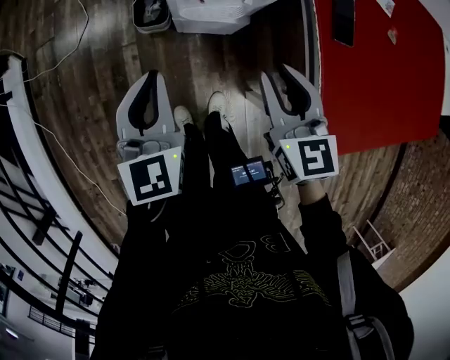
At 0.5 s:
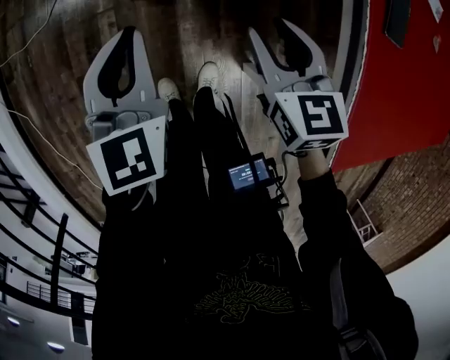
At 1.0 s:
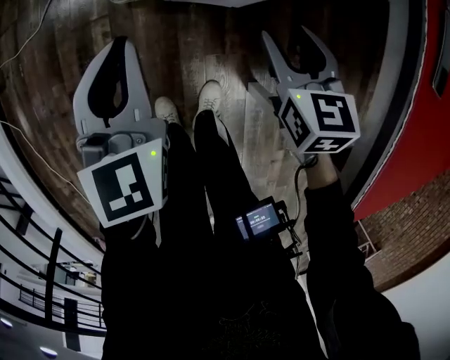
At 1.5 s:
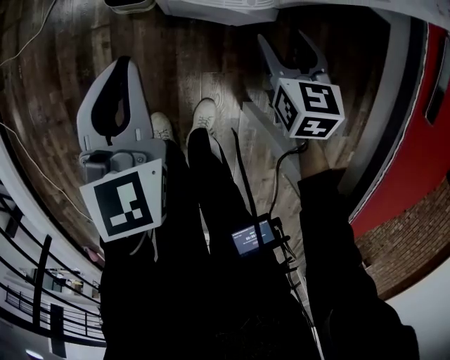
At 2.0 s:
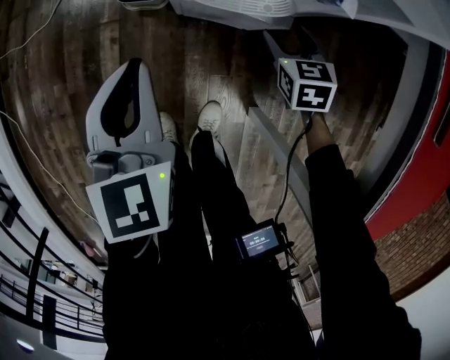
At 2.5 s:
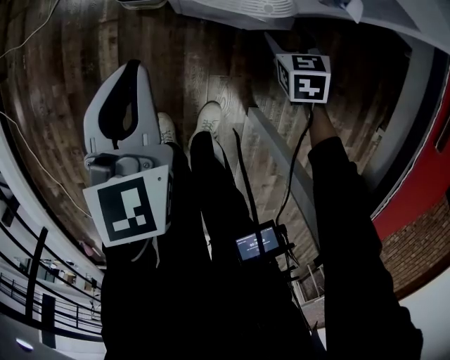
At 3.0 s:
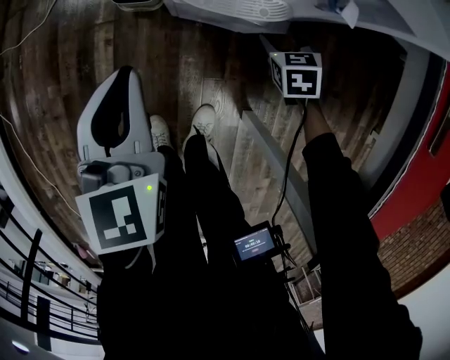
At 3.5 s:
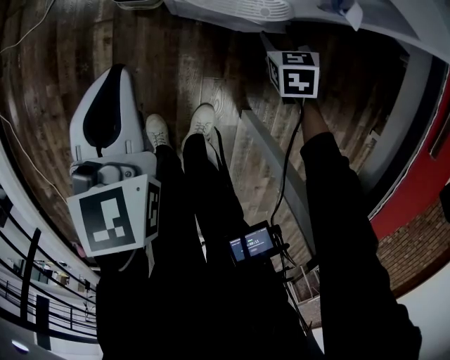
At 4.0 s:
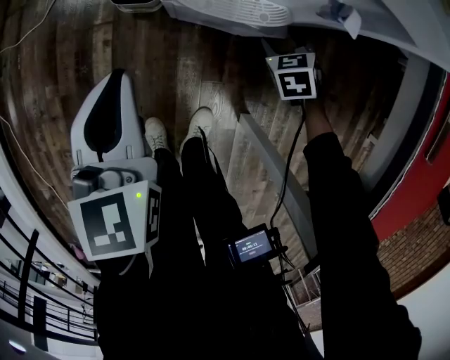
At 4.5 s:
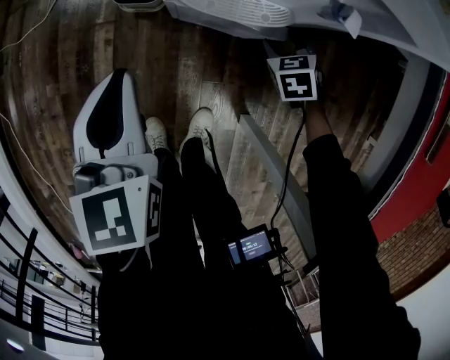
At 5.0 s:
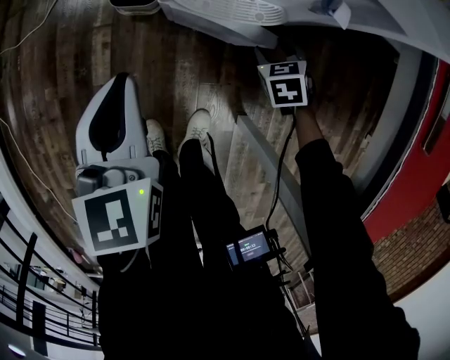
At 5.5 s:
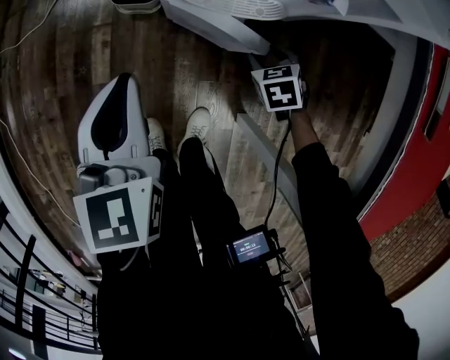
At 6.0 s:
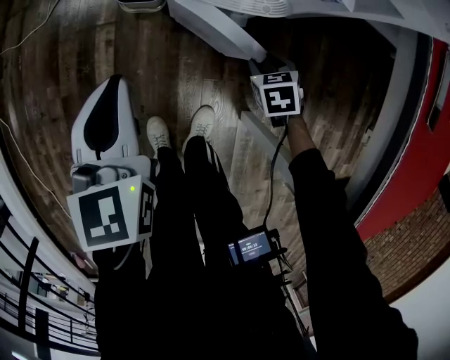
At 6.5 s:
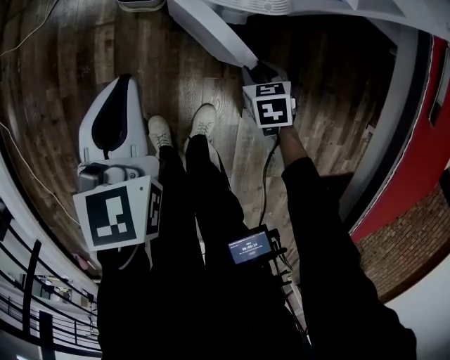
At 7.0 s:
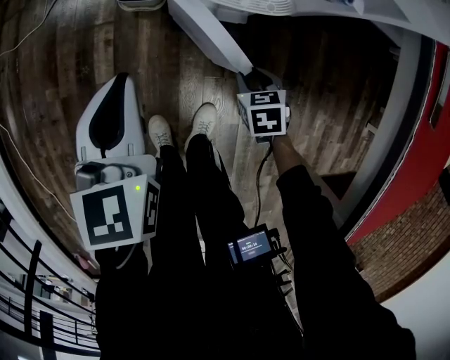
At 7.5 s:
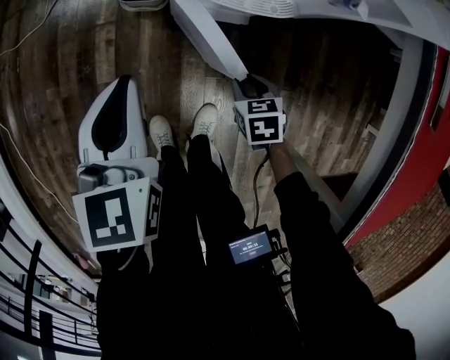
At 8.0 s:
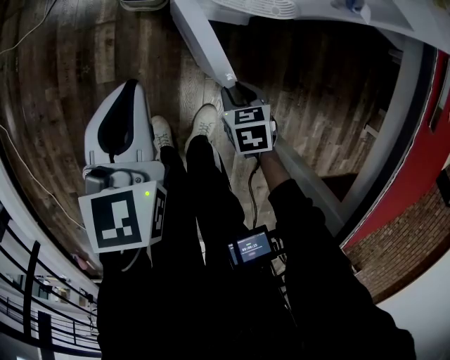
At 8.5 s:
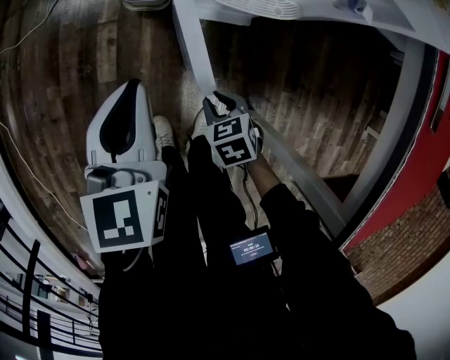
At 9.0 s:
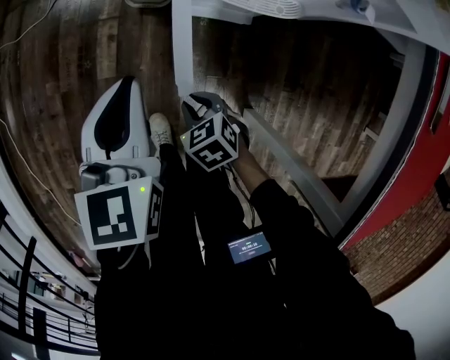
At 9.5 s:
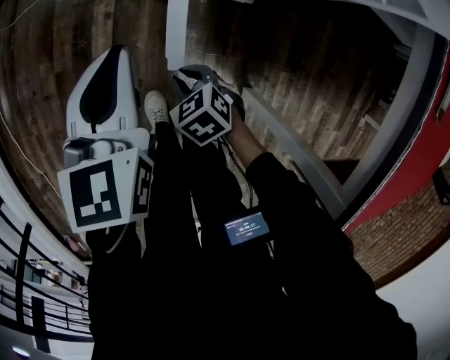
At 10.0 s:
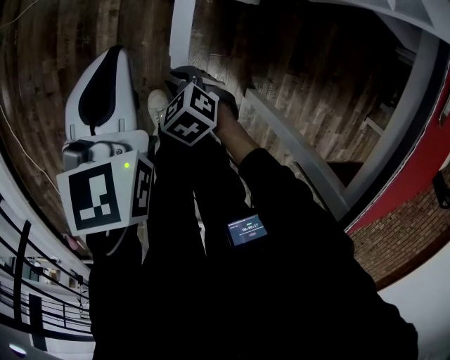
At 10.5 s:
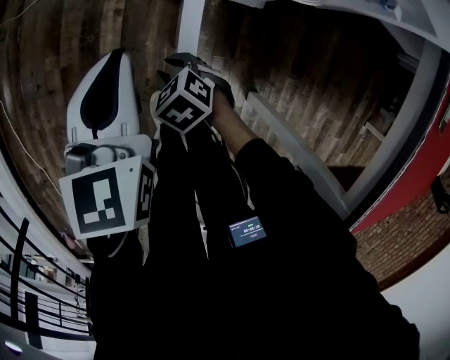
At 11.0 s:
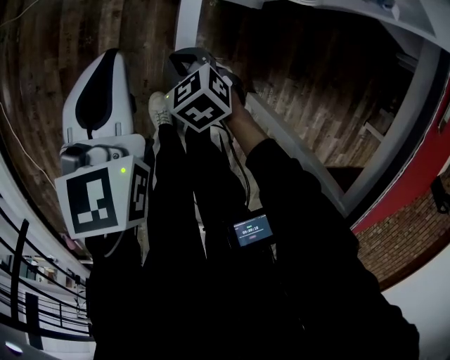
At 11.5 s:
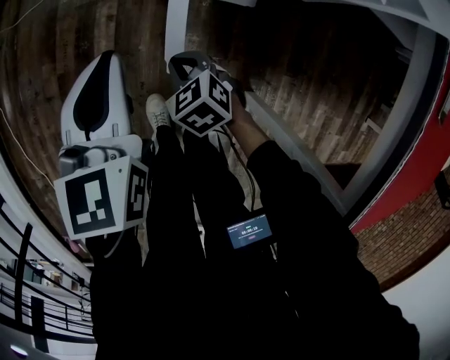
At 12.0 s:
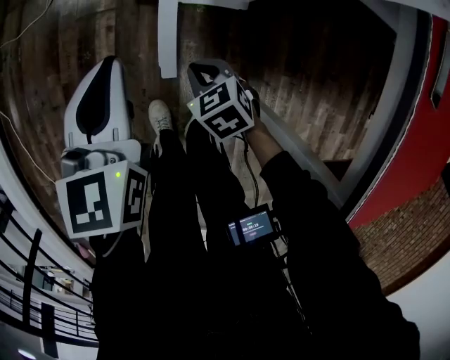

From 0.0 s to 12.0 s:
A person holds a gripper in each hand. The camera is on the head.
From 0.0 s to 2.0 s: The left gripper goes approximately 20 cm downward. Meanwhile the right gripper goes some 35 cm downward, rotates about 20 degrees, and opens.
From 2.0 s to 4.0 s: The right gripper goes approximately 5 cm downward, and swivels about 20 degrees.
From 4.0 s to 6.0 s: The right gripper is displaced backward by about 10 cm, and closes.
From 6.0 s to 8.0 s: The right gripper travels to the left and backward by roughly 10 cm.
From 8.0 s to 10.0 s: The right gripper shifts by roughly 20 cm, and swivels some 40 degrees.
From 10.0 s to 12.0 s: The right gripper heads to the right, covering about 10 cm.

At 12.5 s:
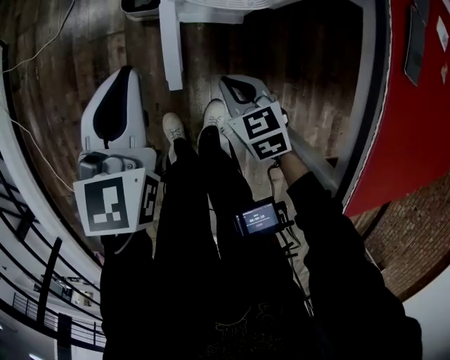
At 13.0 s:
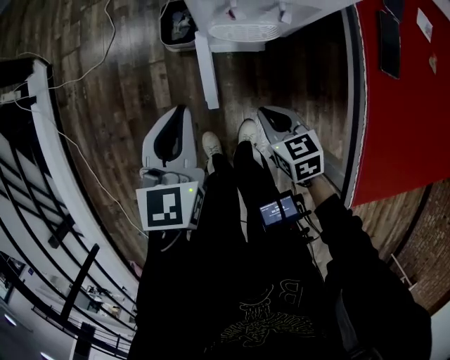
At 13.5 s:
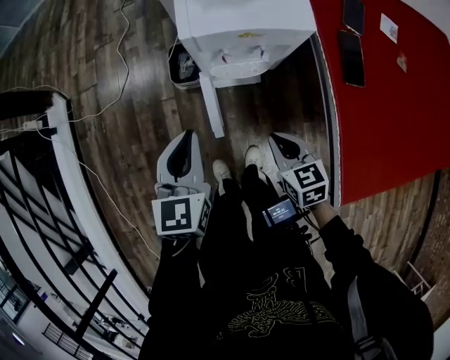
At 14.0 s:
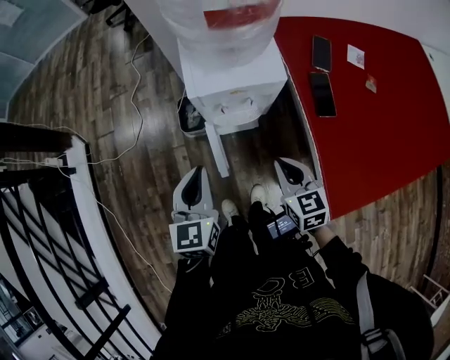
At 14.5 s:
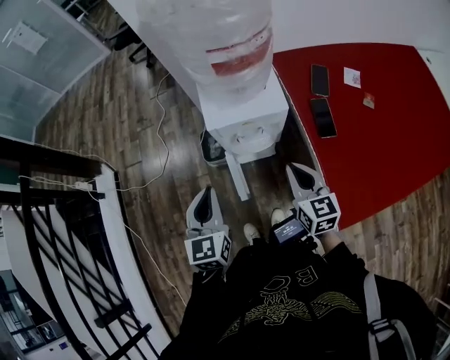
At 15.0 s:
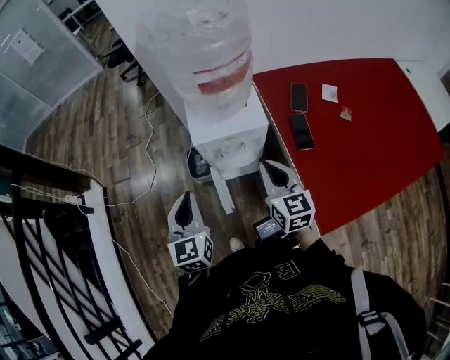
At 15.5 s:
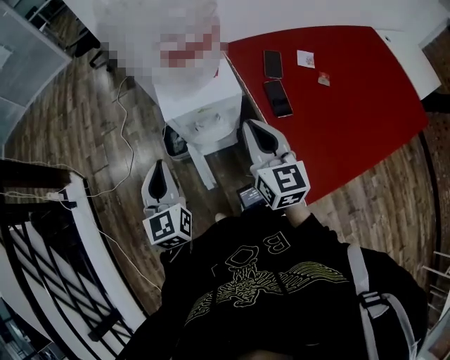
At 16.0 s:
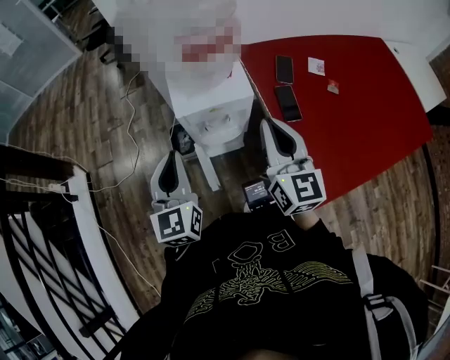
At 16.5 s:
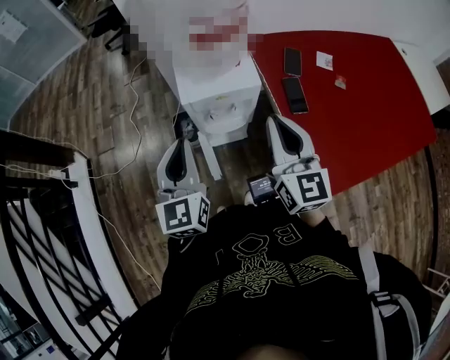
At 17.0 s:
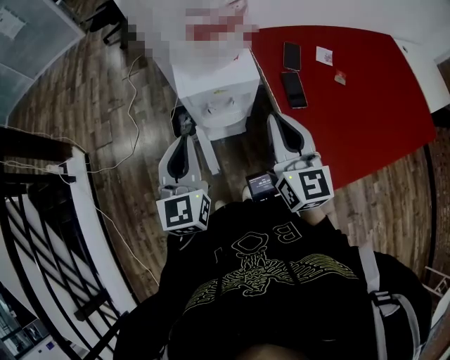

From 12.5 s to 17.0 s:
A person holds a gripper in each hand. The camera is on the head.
From 12.5 s to 14.5 s: Both grippers move upward, approximately 35 cm. The right gripper tips its fingers upward by some 30 degrees.
From 14.5 s to 17.0 s: The right gripper goes roughly 15 cm upward, and changes its angle by roughly 20 degrees, while the left gripper goes some 5 cm upward.

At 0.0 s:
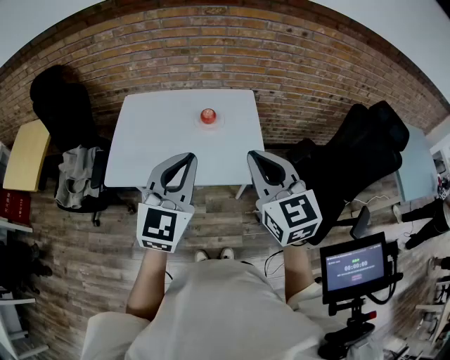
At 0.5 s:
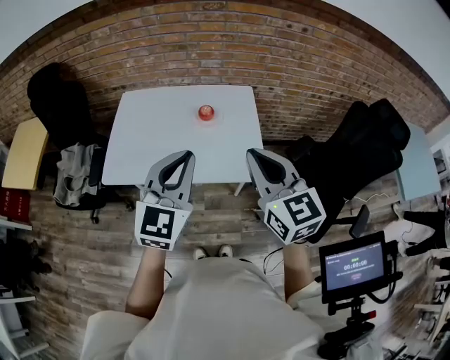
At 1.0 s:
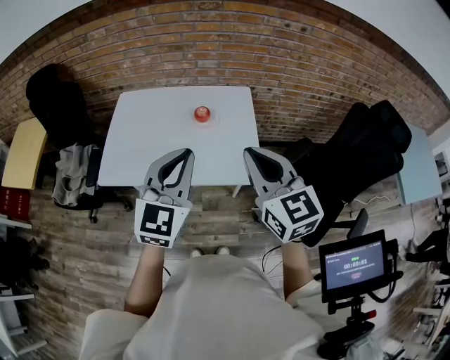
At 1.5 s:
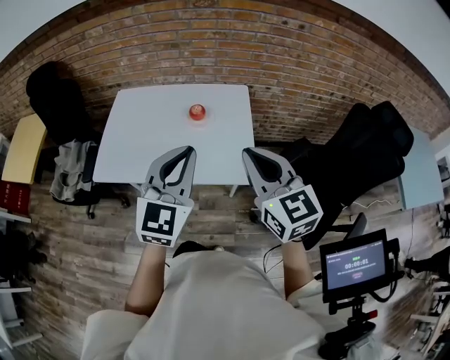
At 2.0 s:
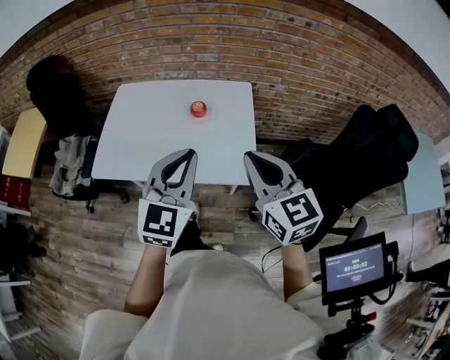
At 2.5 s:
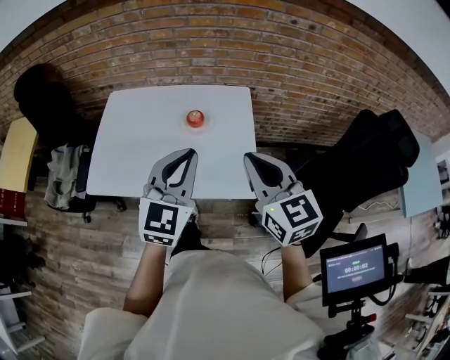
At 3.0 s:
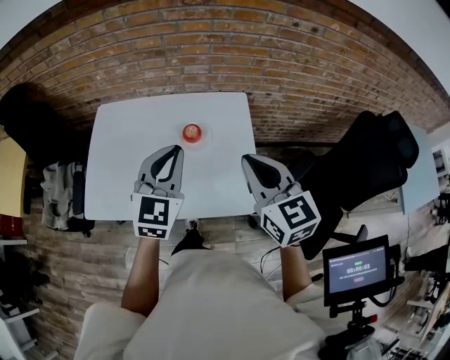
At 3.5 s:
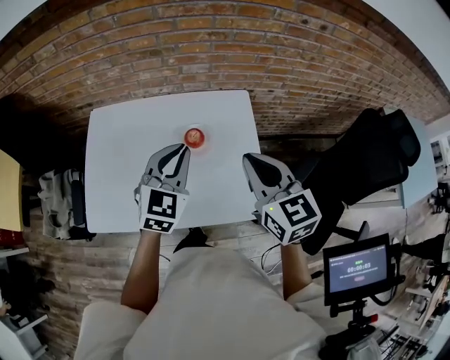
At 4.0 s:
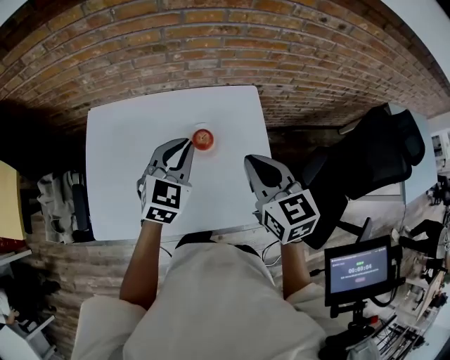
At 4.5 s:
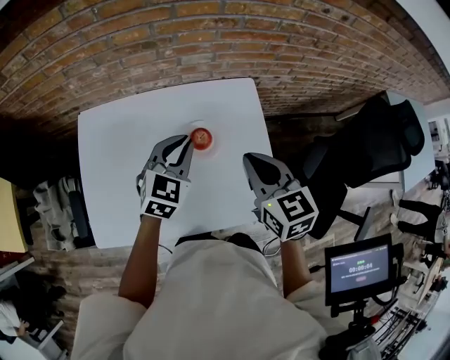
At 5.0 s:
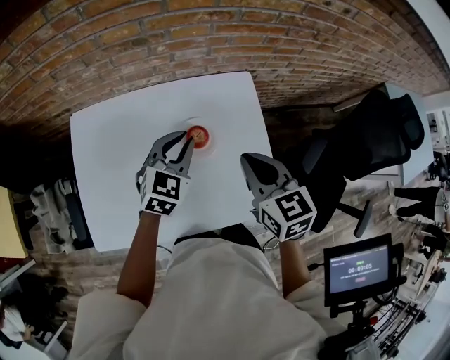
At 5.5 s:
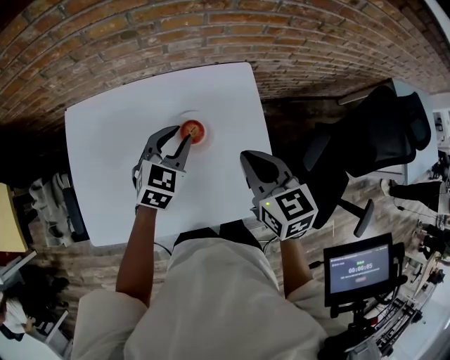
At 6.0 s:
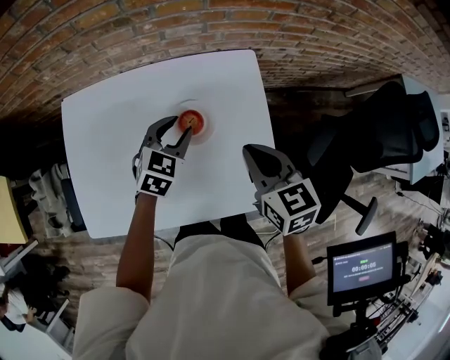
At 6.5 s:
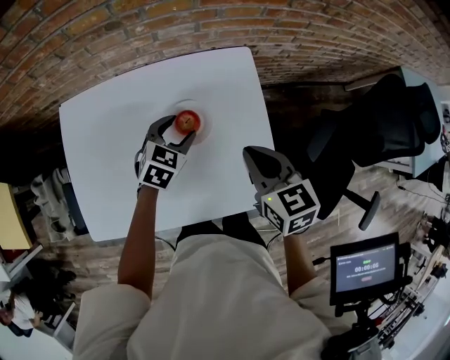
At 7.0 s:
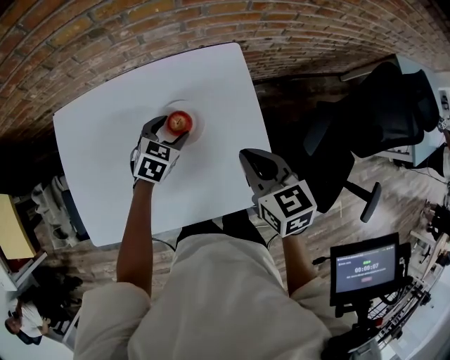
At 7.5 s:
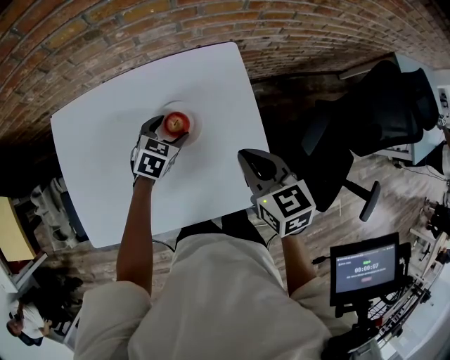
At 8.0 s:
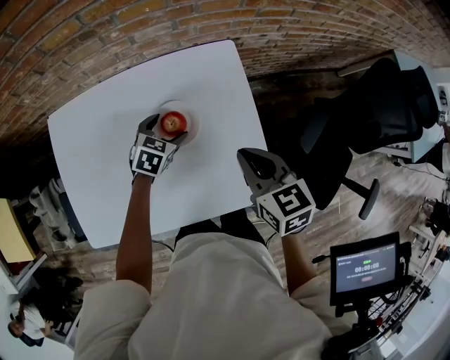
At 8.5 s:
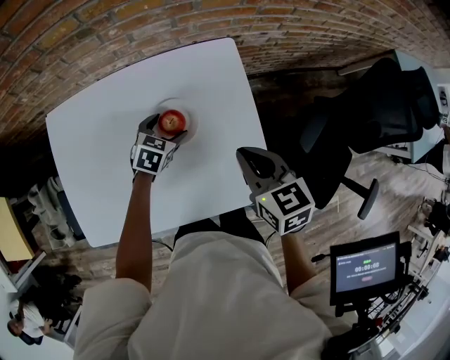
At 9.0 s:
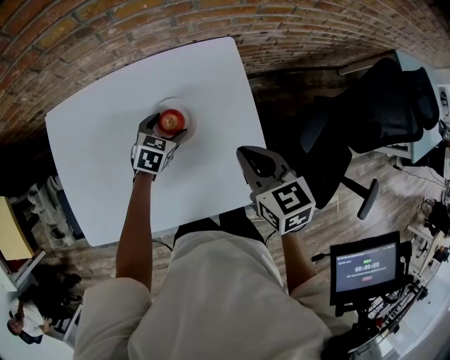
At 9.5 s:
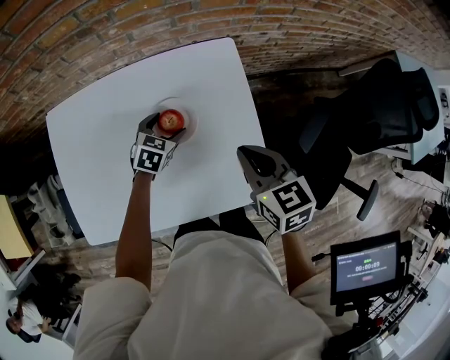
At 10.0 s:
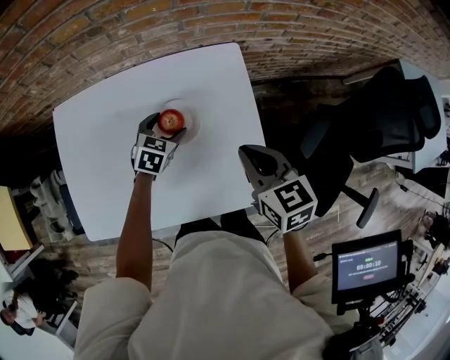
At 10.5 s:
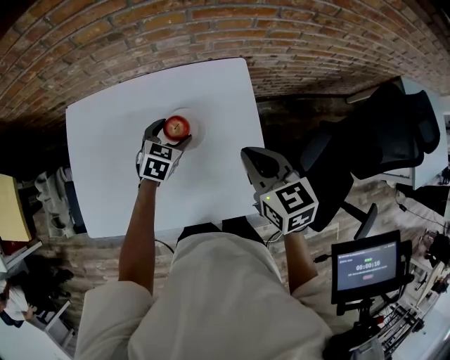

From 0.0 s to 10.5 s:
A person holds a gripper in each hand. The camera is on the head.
From 0.0 s to 2.0 s: Both grippers move to the right, roughly 10 cm.
From 2.0 s to 4.0 s: Both grippers travel together forward, some 30 cm. The left gripper turns by roughly 20 degrees.
From 4.0 s to 6.5 s: The left gripper is displaced downward by roughly 15 cm, rotates about 20 degrees, and opens up. The right gripper travels downward by roughly 10 cm.
From 6.5 s to 8.5 s: The left gripper goes roughly 10 cm downward, and opens.
From 8.5 s to 10.5 s: There are only small adjustments of the grippers.
